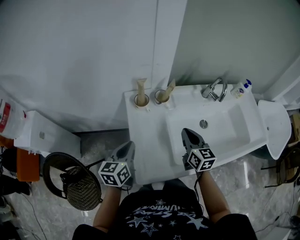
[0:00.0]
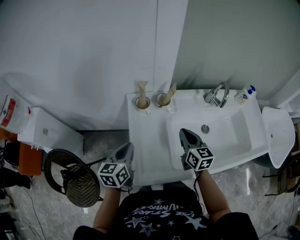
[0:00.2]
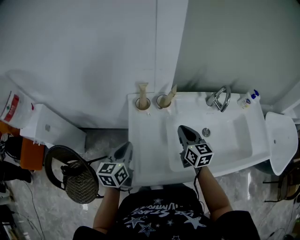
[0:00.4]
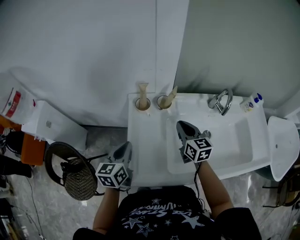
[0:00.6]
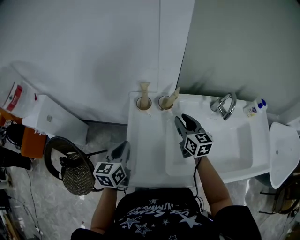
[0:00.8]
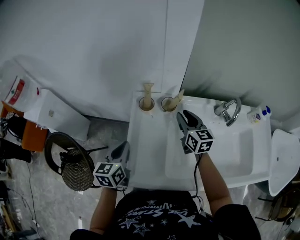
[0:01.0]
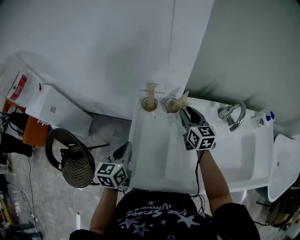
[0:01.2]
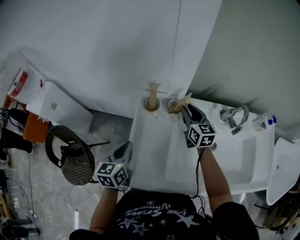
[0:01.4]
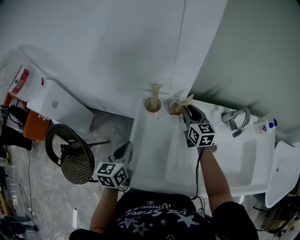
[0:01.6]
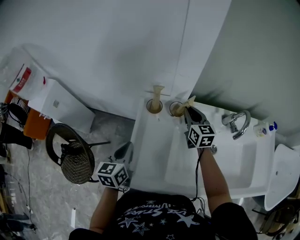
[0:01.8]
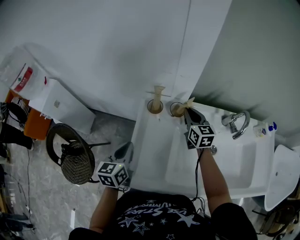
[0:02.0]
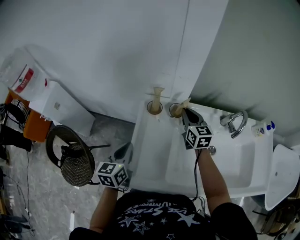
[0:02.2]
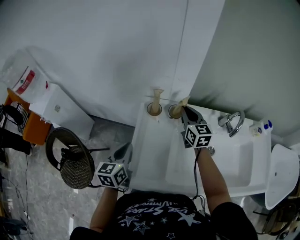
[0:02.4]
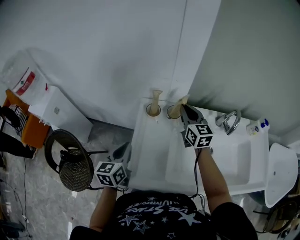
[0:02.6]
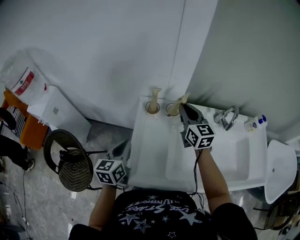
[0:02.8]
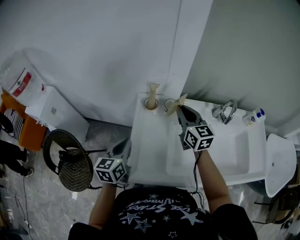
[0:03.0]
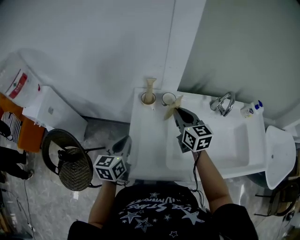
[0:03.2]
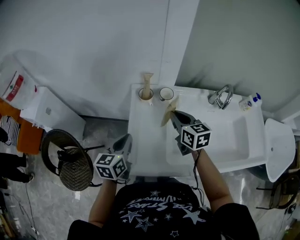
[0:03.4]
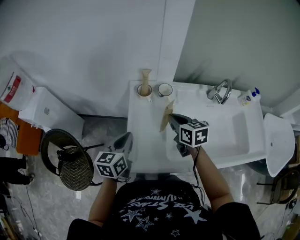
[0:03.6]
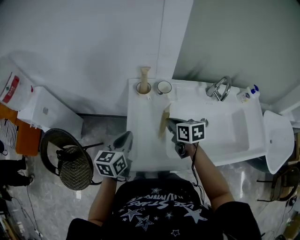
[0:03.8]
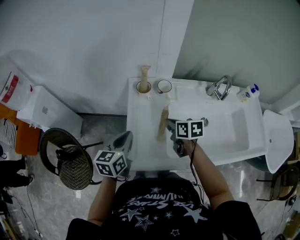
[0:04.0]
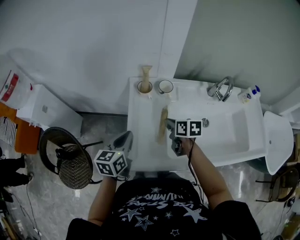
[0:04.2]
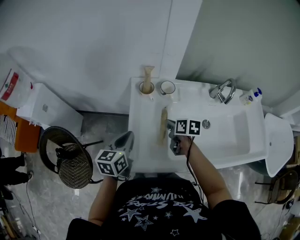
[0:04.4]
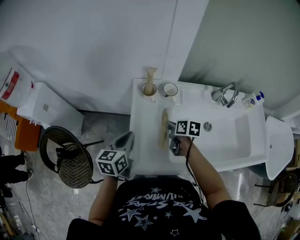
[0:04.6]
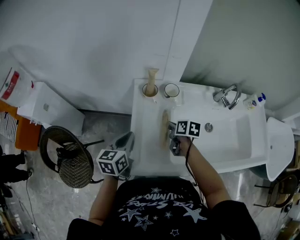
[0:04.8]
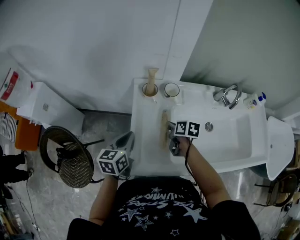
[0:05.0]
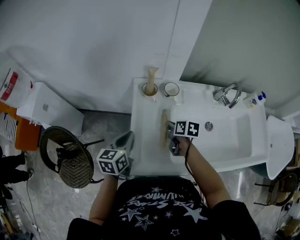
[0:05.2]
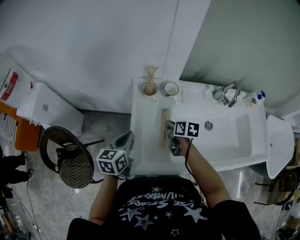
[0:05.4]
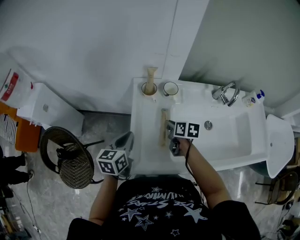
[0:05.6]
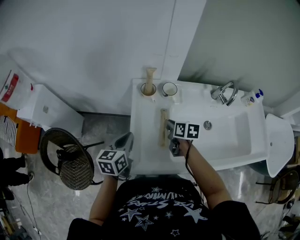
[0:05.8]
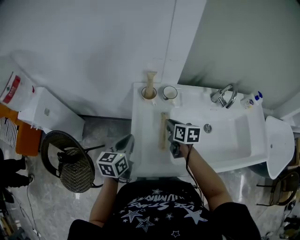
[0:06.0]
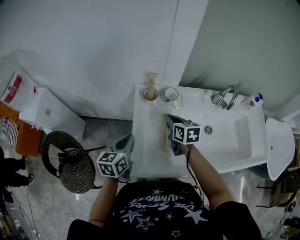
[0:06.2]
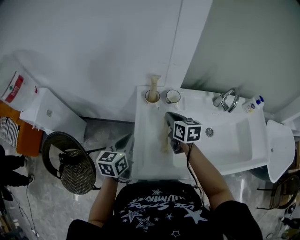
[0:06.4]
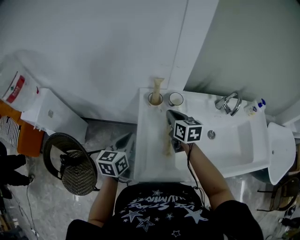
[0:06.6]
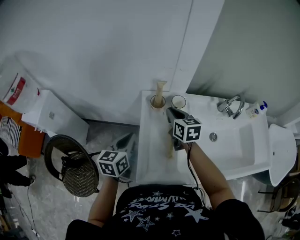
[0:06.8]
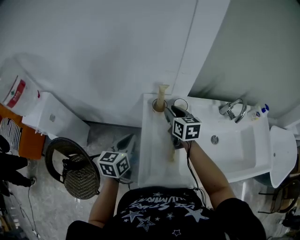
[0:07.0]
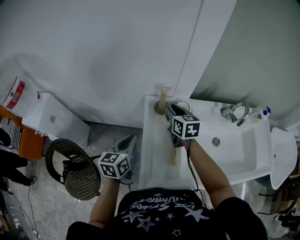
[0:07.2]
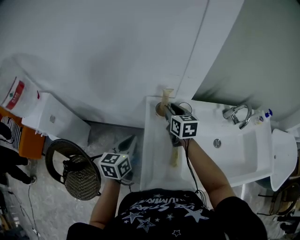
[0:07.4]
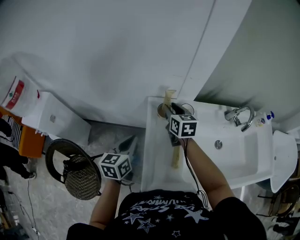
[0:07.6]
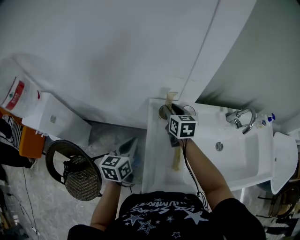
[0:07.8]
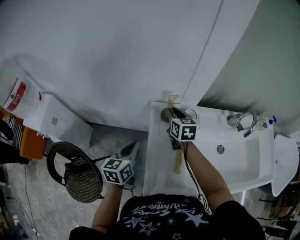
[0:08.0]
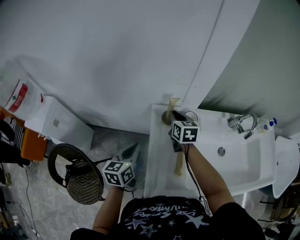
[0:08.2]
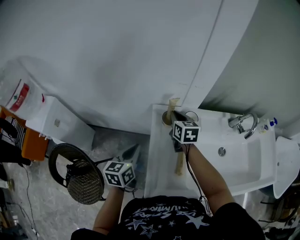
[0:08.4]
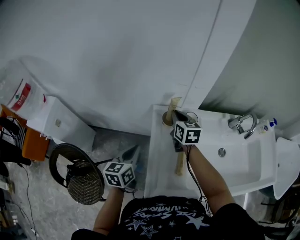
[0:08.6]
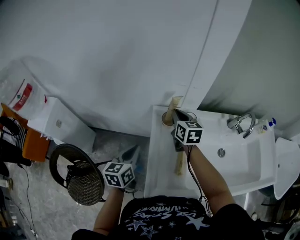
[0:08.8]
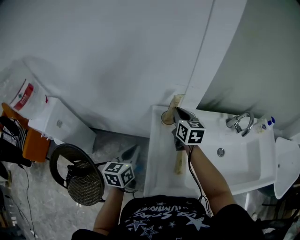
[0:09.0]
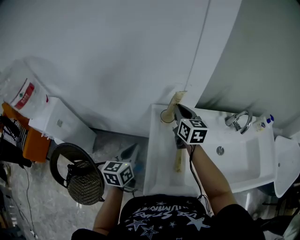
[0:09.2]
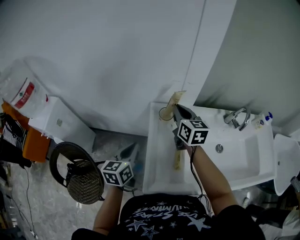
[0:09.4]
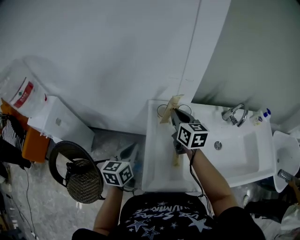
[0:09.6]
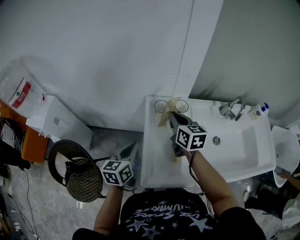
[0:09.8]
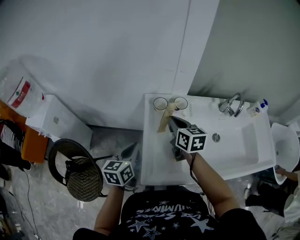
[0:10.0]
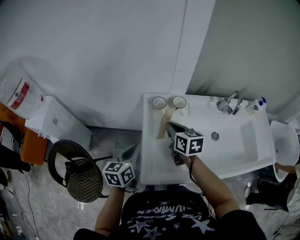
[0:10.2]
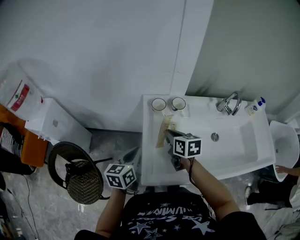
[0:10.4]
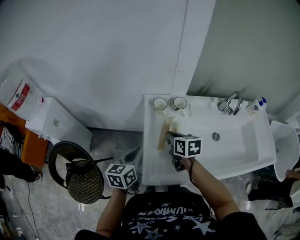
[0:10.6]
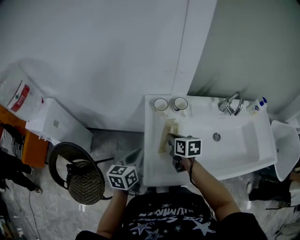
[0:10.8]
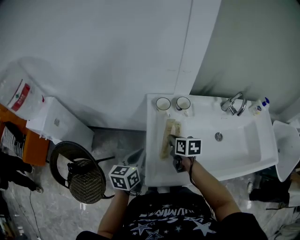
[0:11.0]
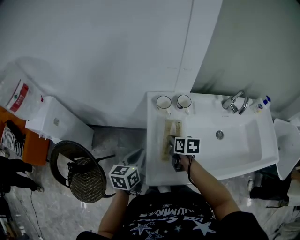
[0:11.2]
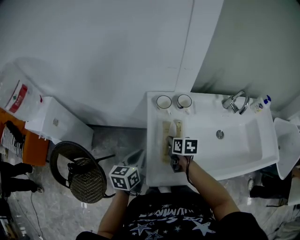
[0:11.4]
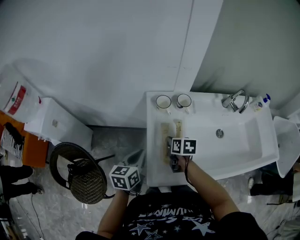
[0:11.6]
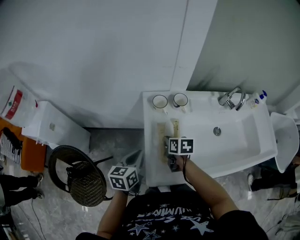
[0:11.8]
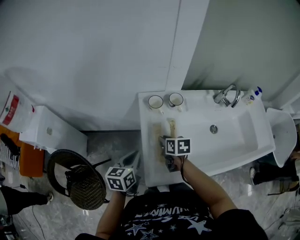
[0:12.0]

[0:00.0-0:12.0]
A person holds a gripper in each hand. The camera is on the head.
0:00.0 to 0:01.6: The left gripper swivels some 20 degrees; the right gripper moves forward, about 20 cm, rotates about 20 degrees, and opens up.
0:01.6 to 0:03.0: The right gripper shifts some 15 cm upward and backward.
0:03.0 to 0:04.4: The right gripper travels downward by about 20 cm, and points its fingers roughly 30 degrees further downward.
0:04.4 to 0:06.0: The grippers make only small movements.
0:06.0 to 0:07.6: The left gripper is displaced forward and to the left by roughly 10 cm. The right gripper moves forward, to the left and upward, some 20 cm, and changes its angle by approximately 20 degrees.
0:07.6 to 0:09.0: The right gripper shifts by approximately 5 cm, and closes its fingers.
0:09.0 to 0:10.4: The right gripper travels backward and downward by roughly 20 cm, and turns by approximately 20 degrees. Meanwhile the left gripper travels backward by roughly 10 cm.
0:10.4 to 0:12.0: The right gripper travels downward by some 10 cm.

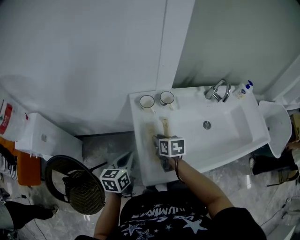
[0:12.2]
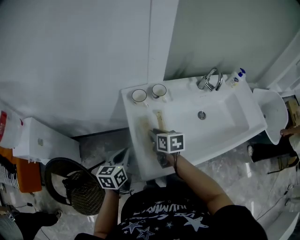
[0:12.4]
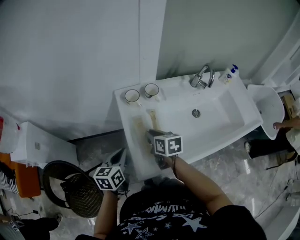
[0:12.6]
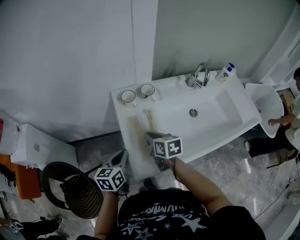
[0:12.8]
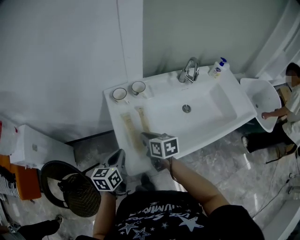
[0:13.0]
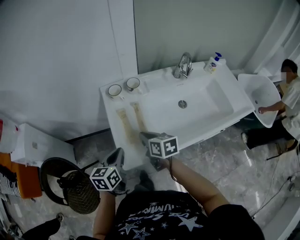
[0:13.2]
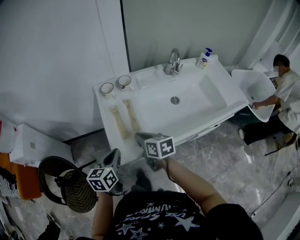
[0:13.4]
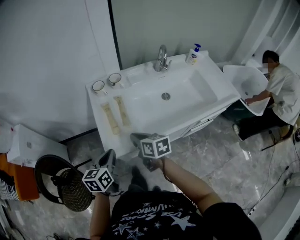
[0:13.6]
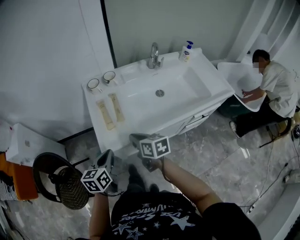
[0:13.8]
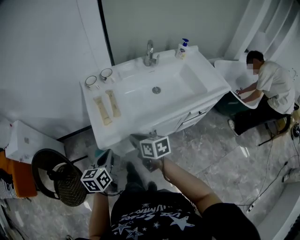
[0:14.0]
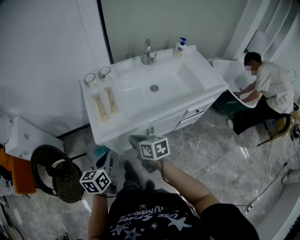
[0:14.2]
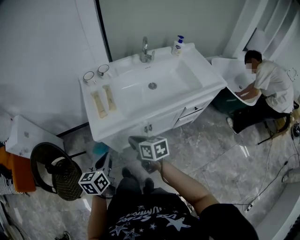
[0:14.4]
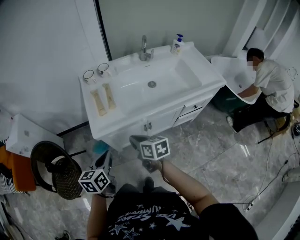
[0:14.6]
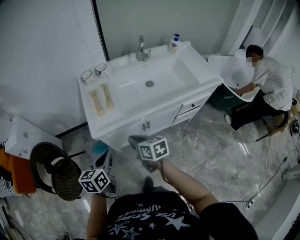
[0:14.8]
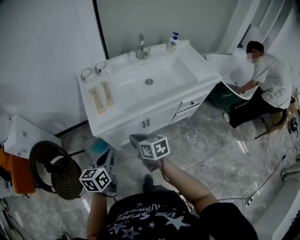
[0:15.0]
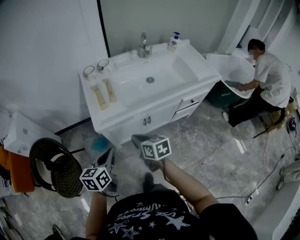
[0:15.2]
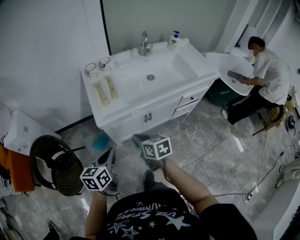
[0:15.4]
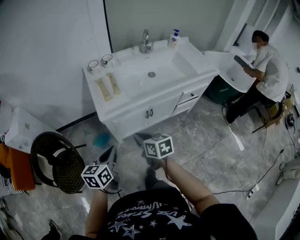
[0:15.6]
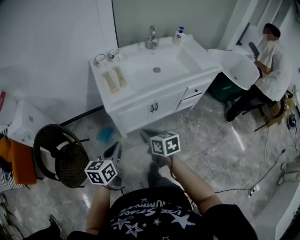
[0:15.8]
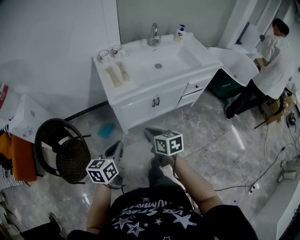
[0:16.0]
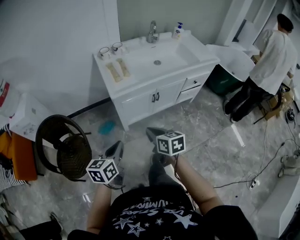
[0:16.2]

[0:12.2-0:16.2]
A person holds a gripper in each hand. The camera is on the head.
0:12.2 to 0:13.6: The grippers both shift backward and to the right by roughly 20 cm.
0:13.6 to 0:14.8: The two grippers go roughly 15 cm backward.
0:14.8 to 0:16.2: The right gripper moves backward, approximately 20 cm, while the left gripper is displaced backward and to the left by approximately 20 cm.

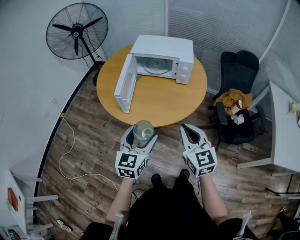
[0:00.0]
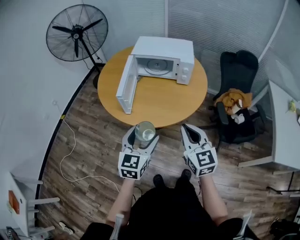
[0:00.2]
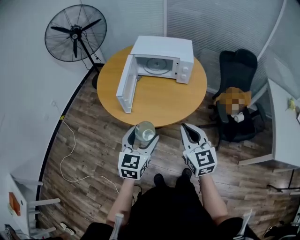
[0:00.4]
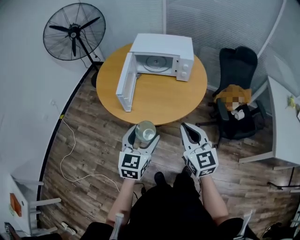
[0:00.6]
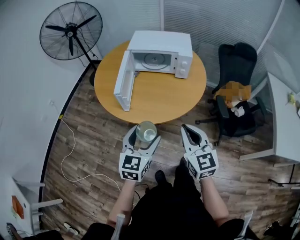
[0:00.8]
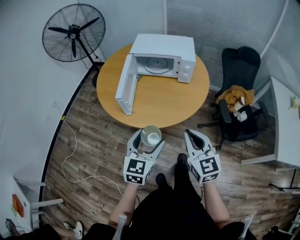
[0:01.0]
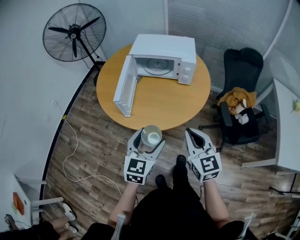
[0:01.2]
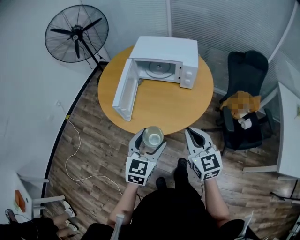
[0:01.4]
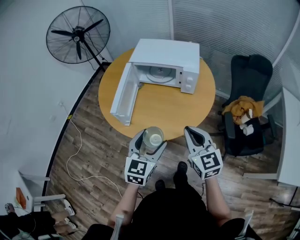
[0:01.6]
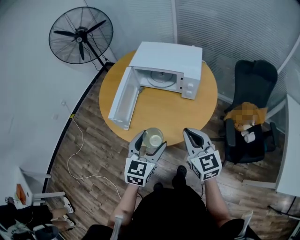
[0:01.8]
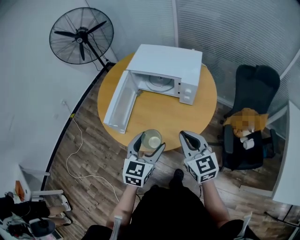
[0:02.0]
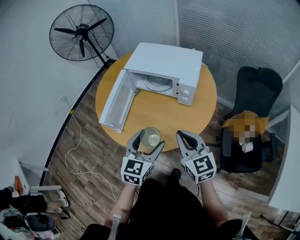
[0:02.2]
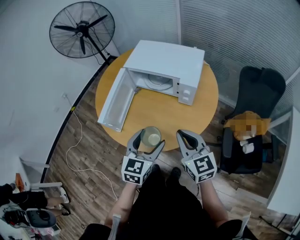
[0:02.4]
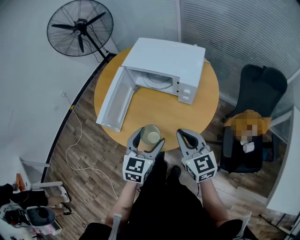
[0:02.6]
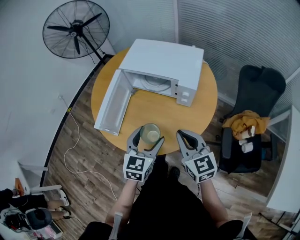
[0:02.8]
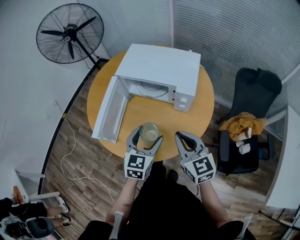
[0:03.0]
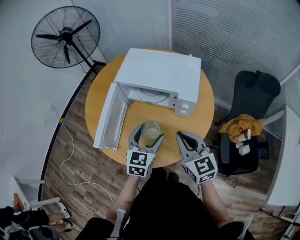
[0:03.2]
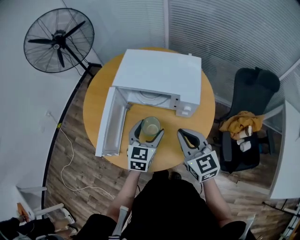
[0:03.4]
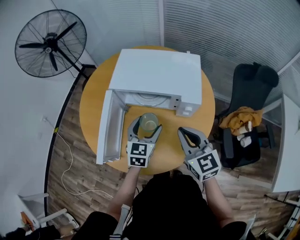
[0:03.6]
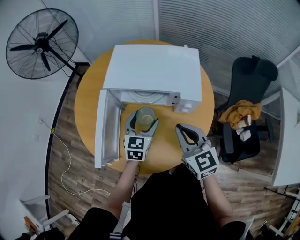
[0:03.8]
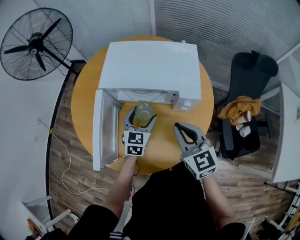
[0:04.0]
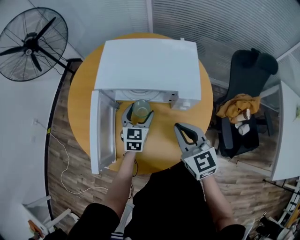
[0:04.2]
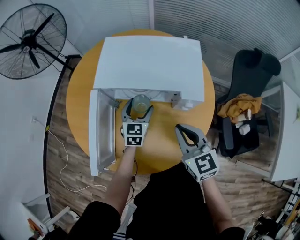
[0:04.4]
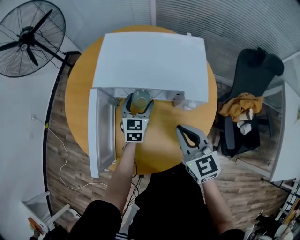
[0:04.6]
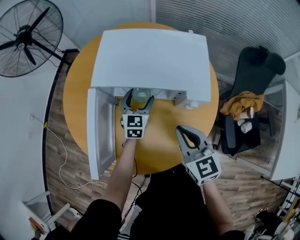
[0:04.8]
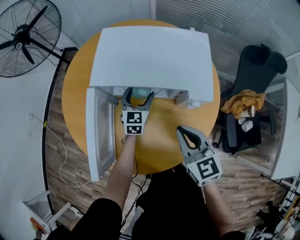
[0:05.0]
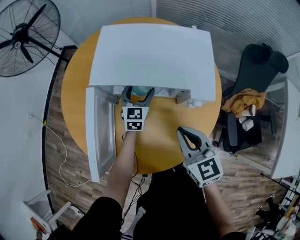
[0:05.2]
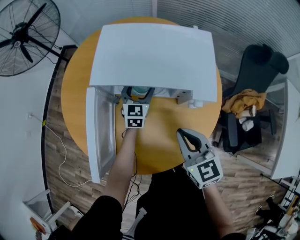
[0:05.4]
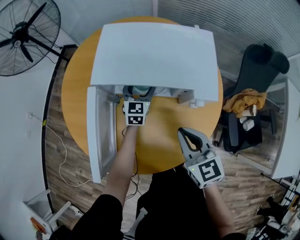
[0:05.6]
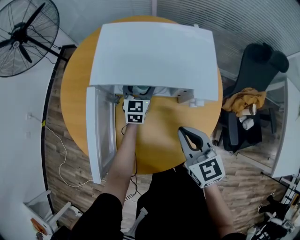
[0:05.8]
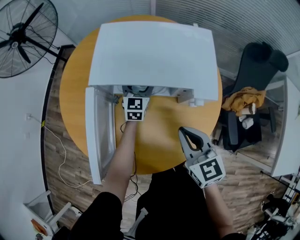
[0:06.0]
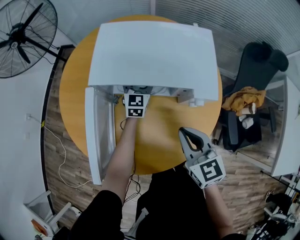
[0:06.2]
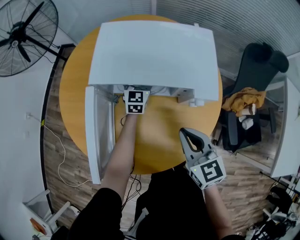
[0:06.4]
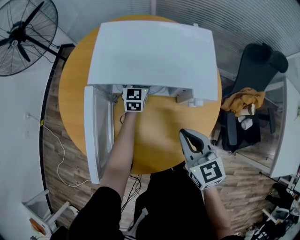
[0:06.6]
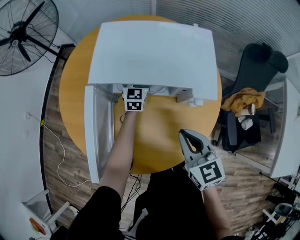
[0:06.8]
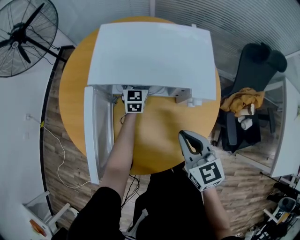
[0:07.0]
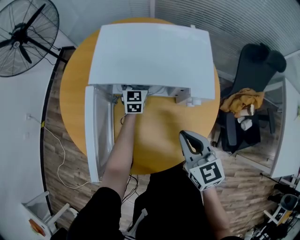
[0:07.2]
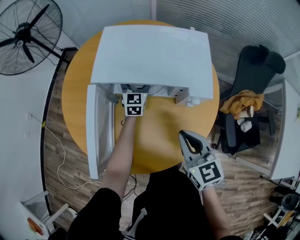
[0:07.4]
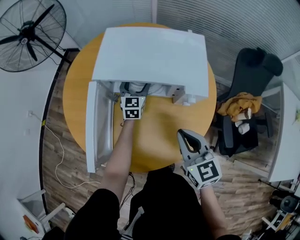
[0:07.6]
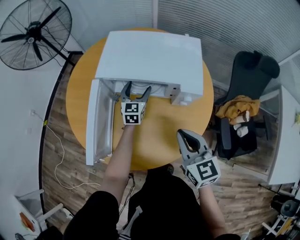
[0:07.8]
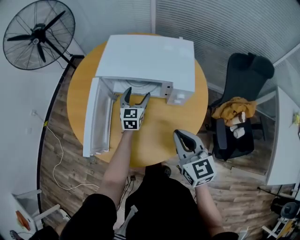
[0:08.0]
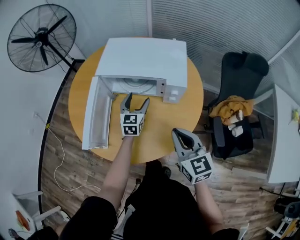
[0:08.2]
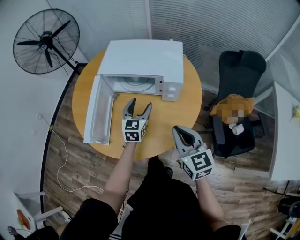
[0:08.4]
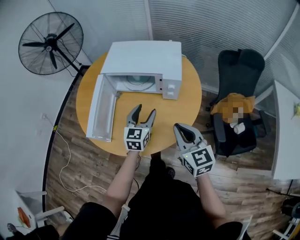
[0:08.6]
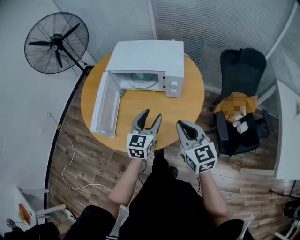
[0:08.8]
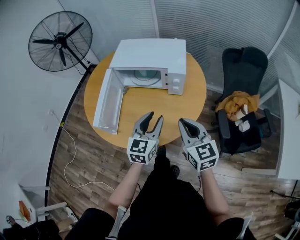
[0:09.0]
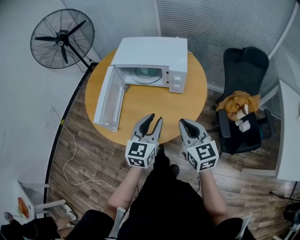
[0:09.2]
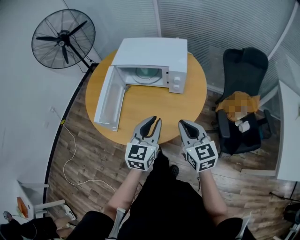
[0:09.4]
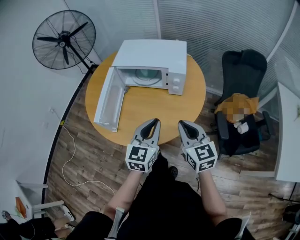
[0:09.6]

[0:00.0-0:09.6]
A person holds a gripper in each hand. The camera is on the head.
0:00.0 to 0:01.6: The right gripper travels forward by approximately 10 cm. The left gripper shifts some 10 cm forward and to the right.
0:01.6 to 0:03.2: Both grippers travel together forward, some 20 cm.
0:03.2 to 0:04.8: The right gripper shifts about 10 cm forward and downward. The left gripper moves forward and downward, some 25 cm.
0:04.8 to 0:06.4: The left gripper is displaced forward by some 10 cm.
0:06.4 to 0:08.0: The right gripper is displaced backward and upward by about 10 cm. Meanwhile the left gripper travels backward by some 15 cm.
0:08.0 to 0:09.6: The right gripper goes roughly 10 cm backward, while the left gripper travels backward and upward by some 35 cm, and closes its fingers.
